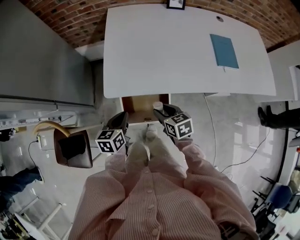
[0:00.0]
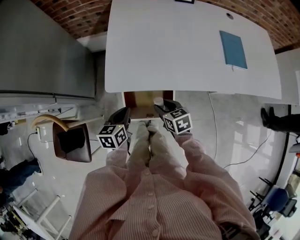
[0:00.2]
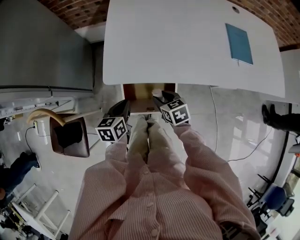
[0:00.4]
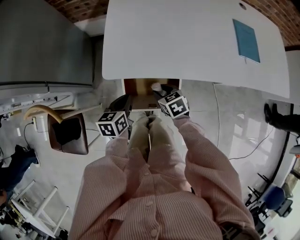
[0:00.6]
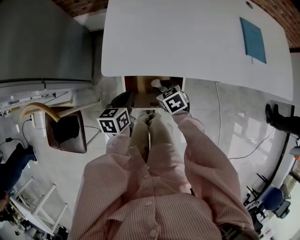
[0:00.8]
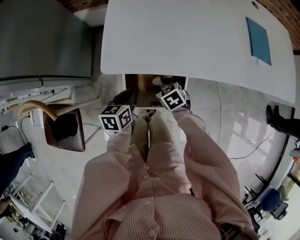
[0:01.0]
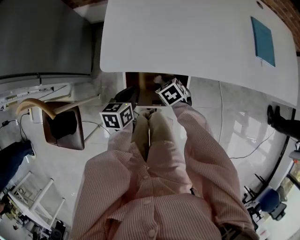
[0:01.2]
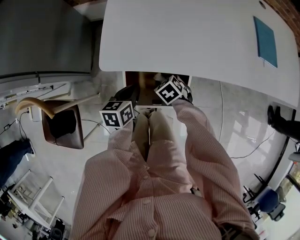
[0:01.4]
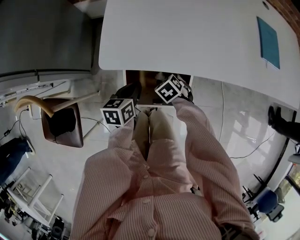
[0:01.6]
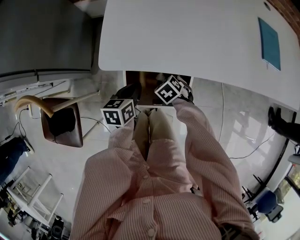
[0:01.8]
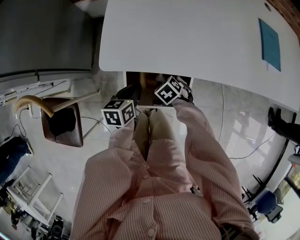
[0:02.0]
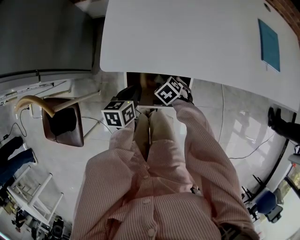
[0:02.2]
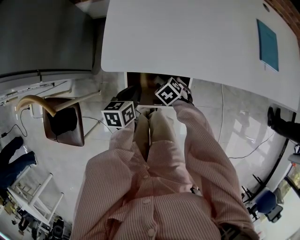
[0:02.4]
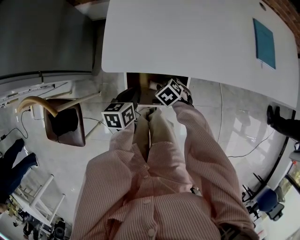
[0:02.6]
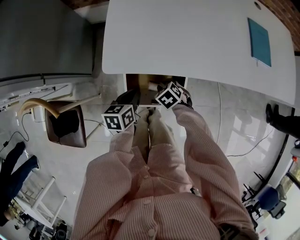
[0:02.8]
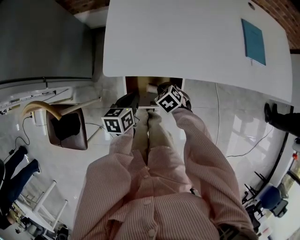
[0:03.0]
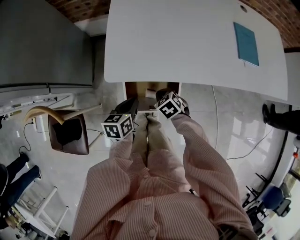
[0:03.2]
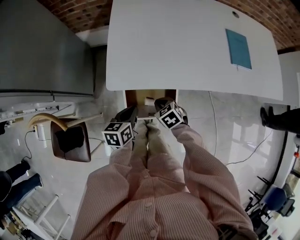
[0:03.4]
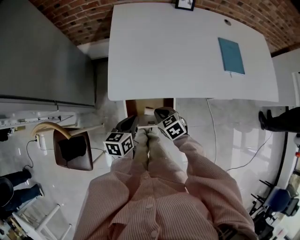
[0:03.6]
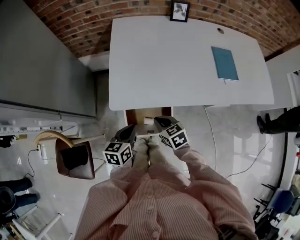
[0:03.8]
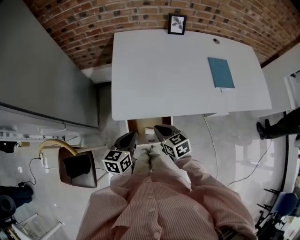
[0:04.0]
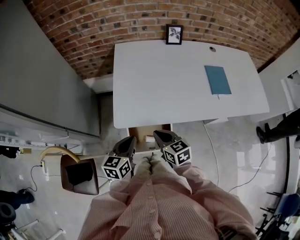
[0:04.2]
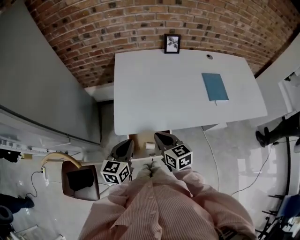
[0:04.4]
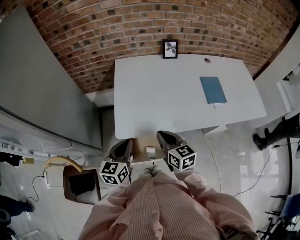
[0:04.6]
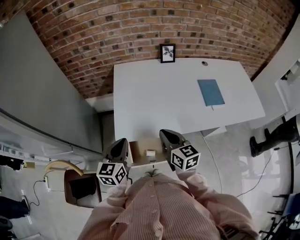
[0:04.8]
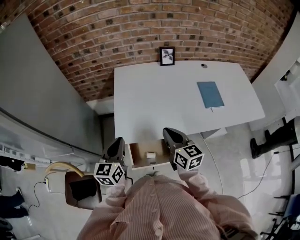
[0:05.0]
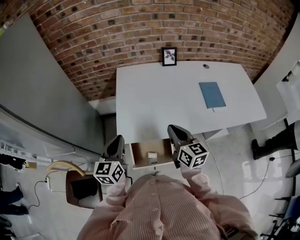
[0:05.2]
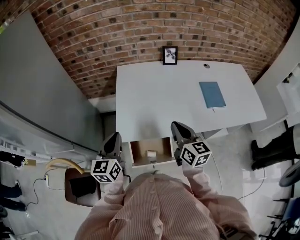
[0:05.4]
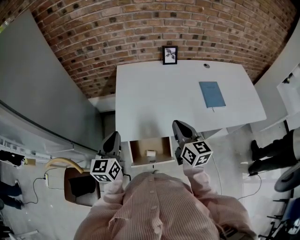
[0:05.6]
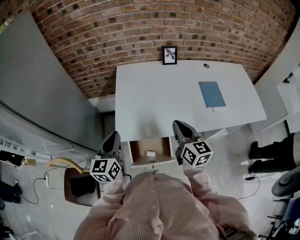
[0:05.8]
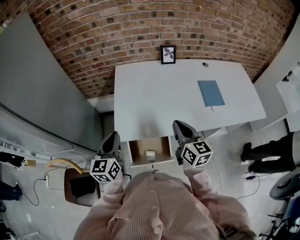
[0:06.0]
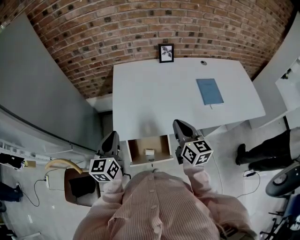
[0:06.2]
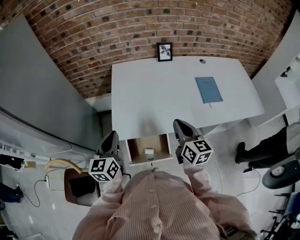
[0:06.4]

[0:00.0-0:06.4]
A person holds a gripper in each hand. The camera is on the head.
0:00.0 to 0:01.6: The right gripper heads downward, covering about 25 cm, and turns by some 40 degrees, while the left gripper is displaced downward by some 15 cm.
0:01.6 to 0:03.2: The grippers both shift upward by roughly 10 cm. The right gripper closes up.
0:03.2 to 0:04.8: The grippers both shift upward by roughly 30 cm. The left gripper swivels about 30 degrees, while the right gripper angles its fingers upward, by roughly 50 degrees.
0:04.8 to 0:06.4: The right gripper travels to the right by about 10 cm.

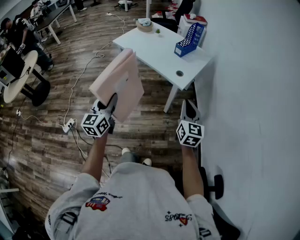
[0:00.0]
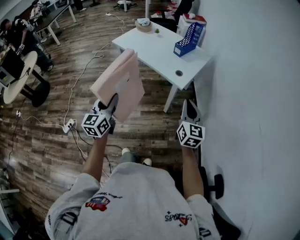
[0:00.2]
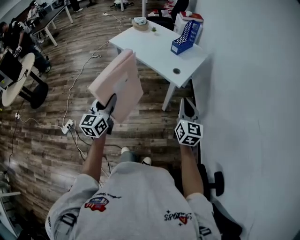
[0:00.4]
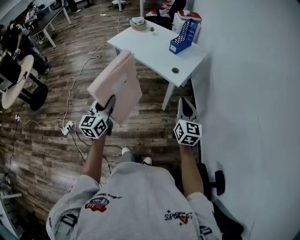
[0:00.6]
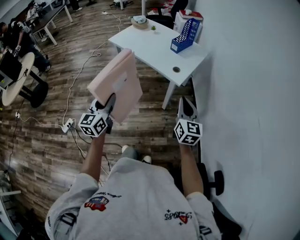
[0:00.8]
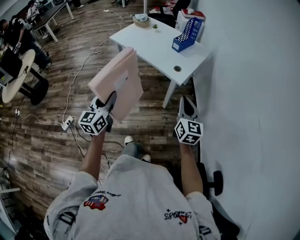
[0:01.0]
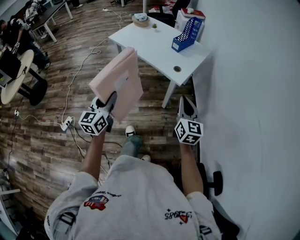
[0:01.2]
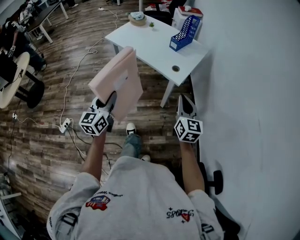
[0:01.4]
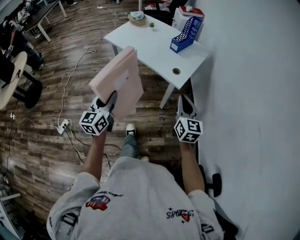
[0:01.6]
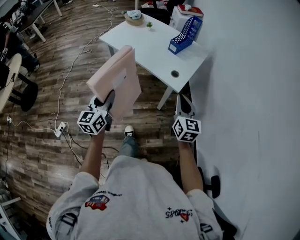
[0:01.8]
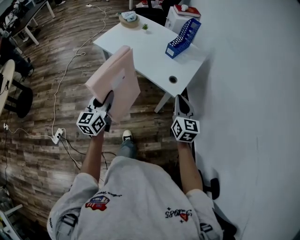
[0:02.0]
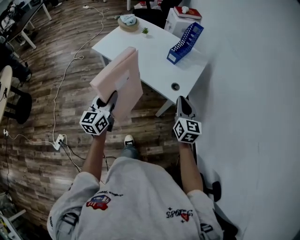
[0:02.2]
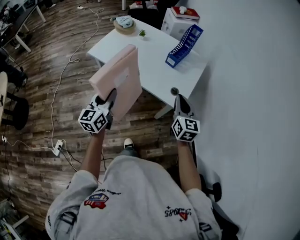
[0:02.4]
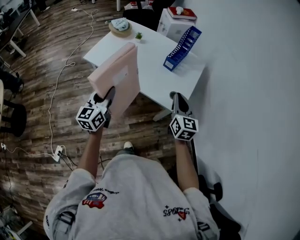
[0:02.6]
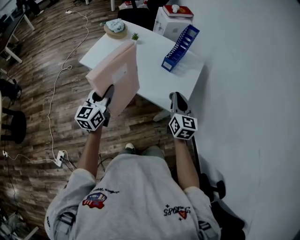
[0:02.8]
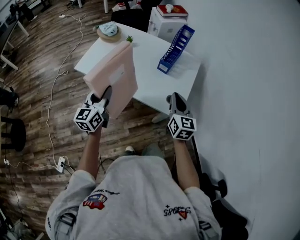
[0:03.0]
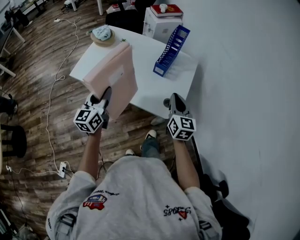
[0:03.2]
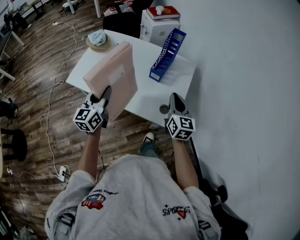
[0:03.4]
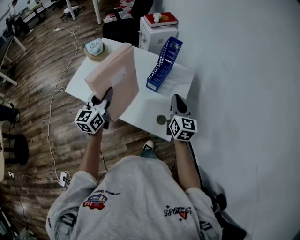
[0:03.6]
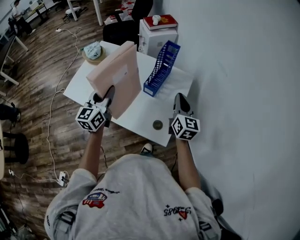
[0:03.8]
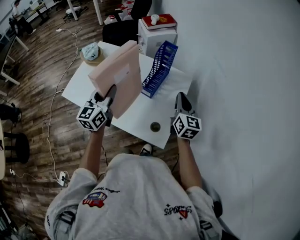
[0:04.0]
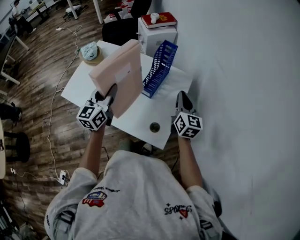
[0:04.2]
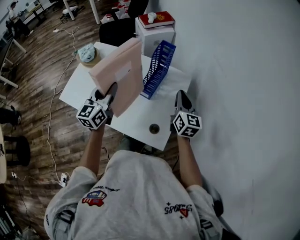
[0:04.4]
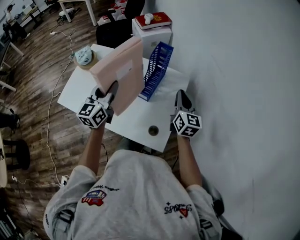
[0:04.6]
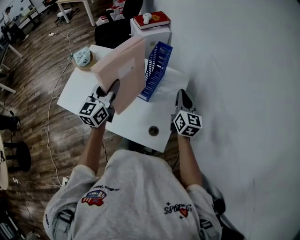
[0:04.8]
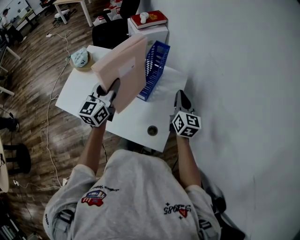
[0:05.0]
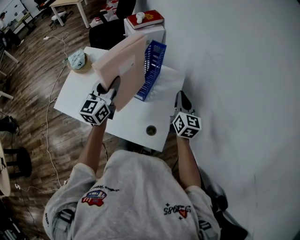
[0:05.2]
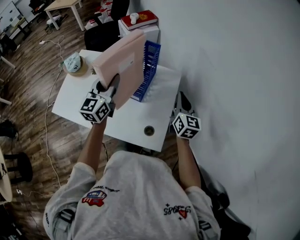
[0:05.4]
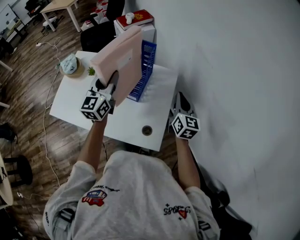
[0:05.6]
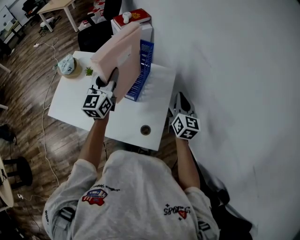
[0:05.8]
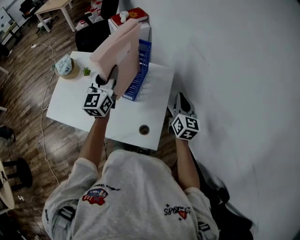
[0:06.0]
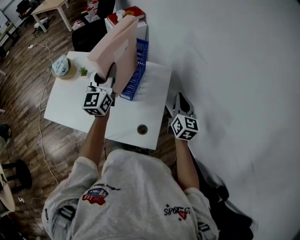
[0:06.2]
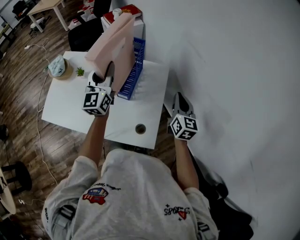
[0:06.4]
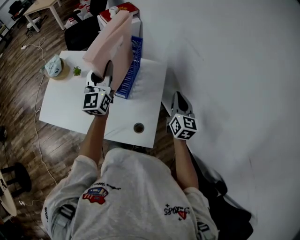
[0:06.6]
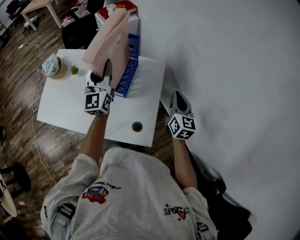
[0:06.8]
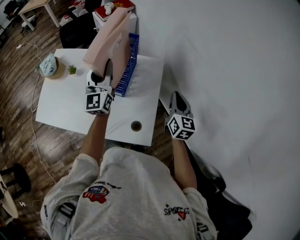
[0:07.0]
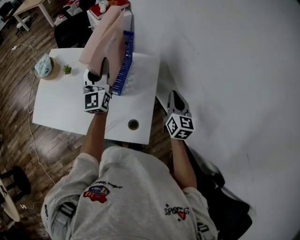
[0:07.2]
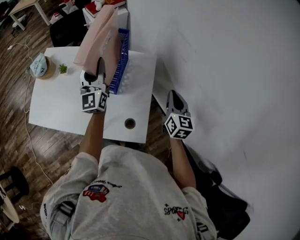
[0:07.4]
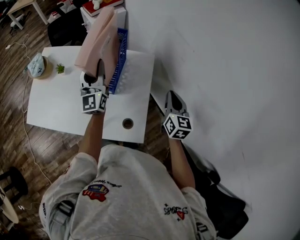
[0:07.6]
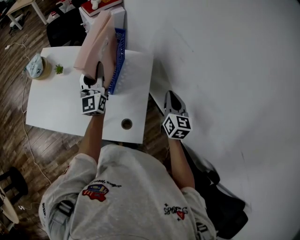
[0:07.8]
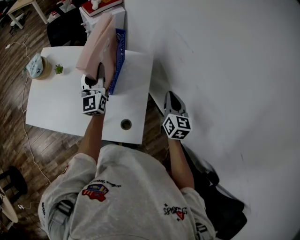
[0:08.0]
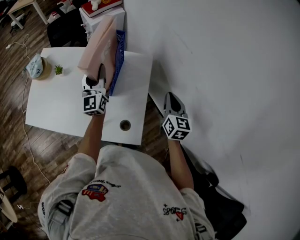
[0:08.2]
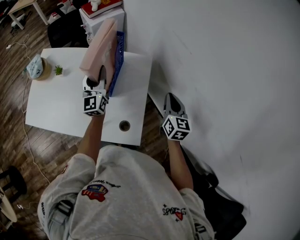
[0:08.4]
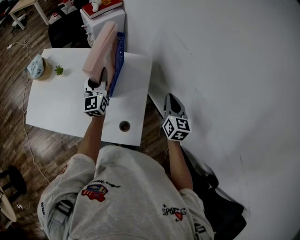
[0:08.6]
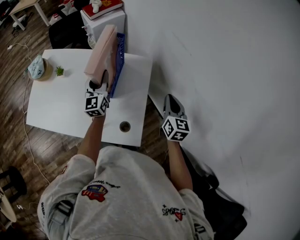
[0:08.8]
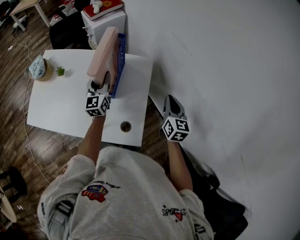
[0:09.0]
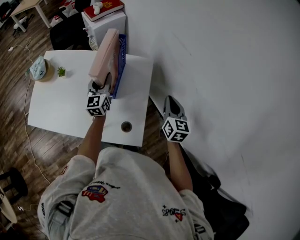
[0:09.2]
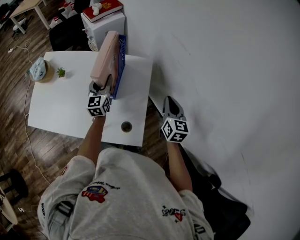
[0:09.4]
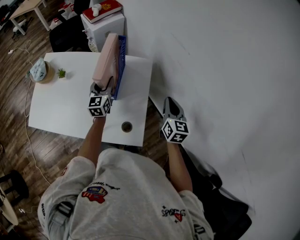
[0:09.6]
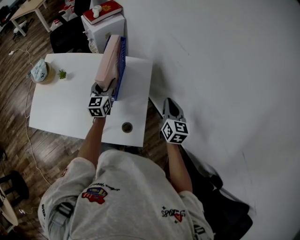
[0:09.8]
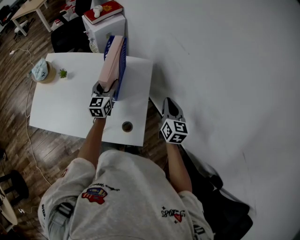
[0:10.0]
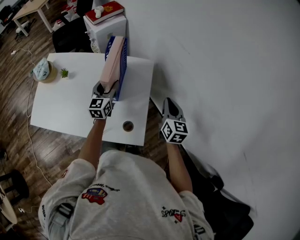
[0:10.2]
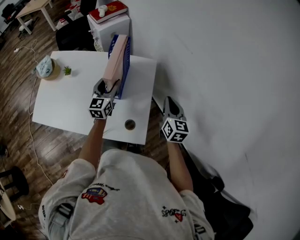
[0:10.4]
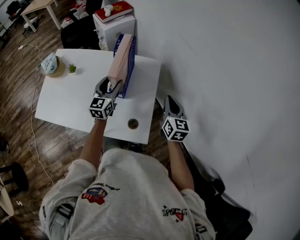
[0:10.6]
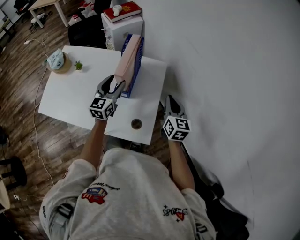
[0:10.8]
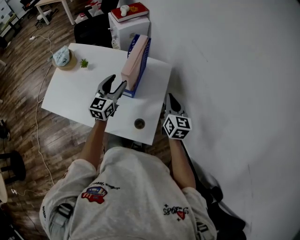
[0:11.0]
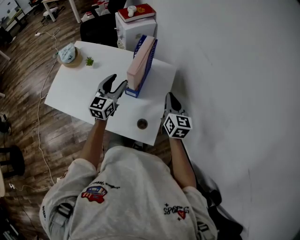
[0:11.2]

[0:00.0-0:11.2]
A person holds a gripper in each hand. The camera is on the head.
0:00.0 to 0:01.6: The grippers both shift forward by approximately 10 cm.
0:01.6 to 0:03.2: Both grippers move forward, approximately 40 cm.
0:03.2 to 0:04.8: The two grippers go about 30 cm forward and to the right.
0:04.8 to 0:06.4: The left gripper travels forward and to the right by roughly 10 cm, while the right gripper travels to the right by about 10 cm.
0:06.4 to 0:08.0: The right gripper shifts by about 5 cm, while the left gripper shifts about 10 cm downward.
0:08.0 to 0:09.6: The left gripper moves downward, roughly 10 cm, and rotates approximately 20 degrees.
0:09.6 to 0:11.2: The left gripper travels backward and upward by roughly 15 cm; the right gripper heads to the left, covering approximately 10 cm.

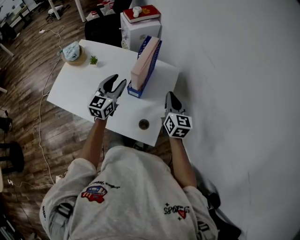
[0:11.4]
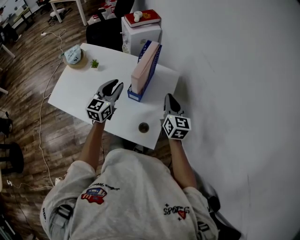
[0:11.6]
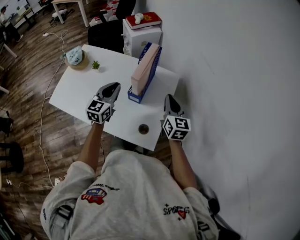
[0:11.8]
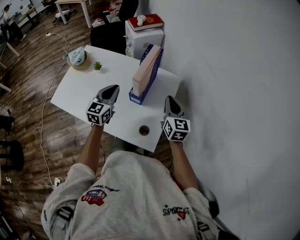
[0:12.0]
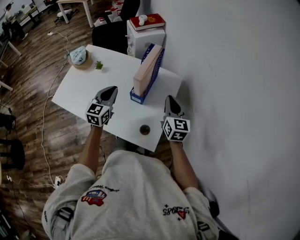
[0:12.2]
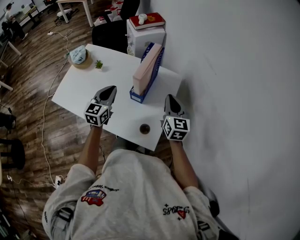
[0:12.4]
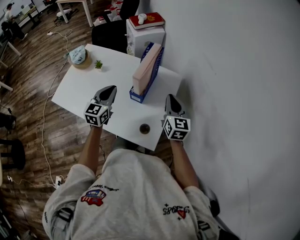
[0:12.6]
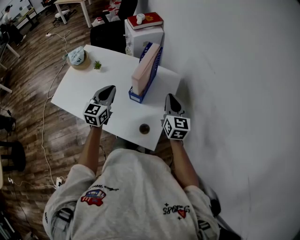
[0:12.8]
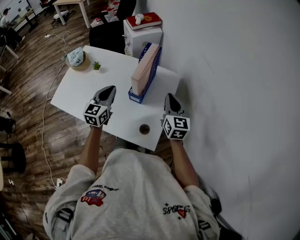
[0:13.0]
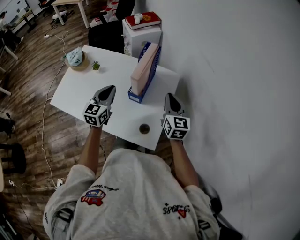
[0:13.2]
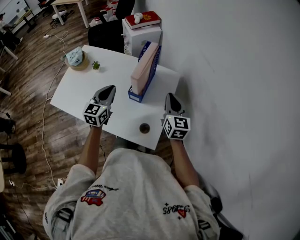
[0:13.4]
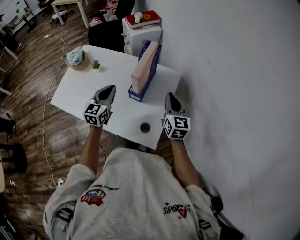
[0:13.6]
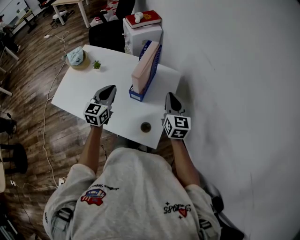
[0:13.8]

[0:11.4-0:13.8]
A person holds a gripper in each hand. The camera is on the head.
0:11.4 to 0:12.6: The left gripper closes.
0:12.6 to 0:13.8: Both grippers stay put.

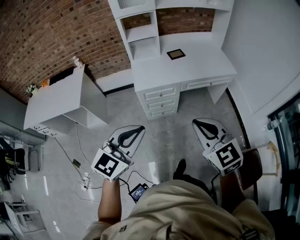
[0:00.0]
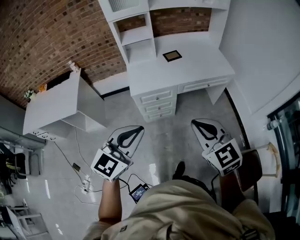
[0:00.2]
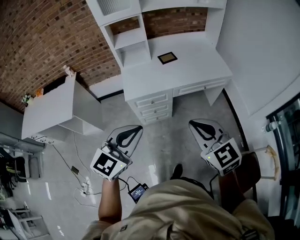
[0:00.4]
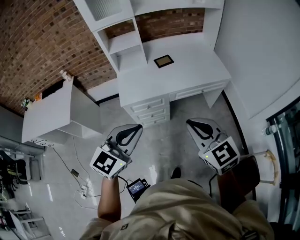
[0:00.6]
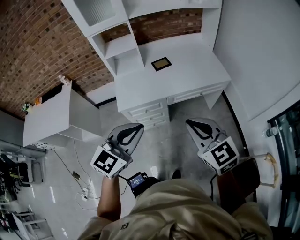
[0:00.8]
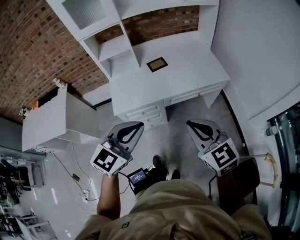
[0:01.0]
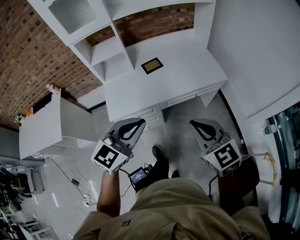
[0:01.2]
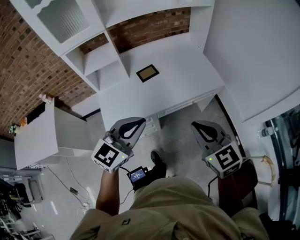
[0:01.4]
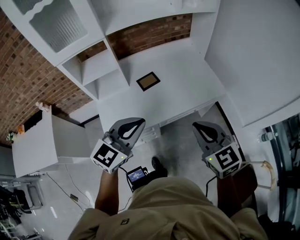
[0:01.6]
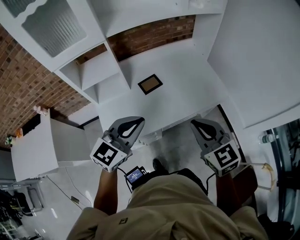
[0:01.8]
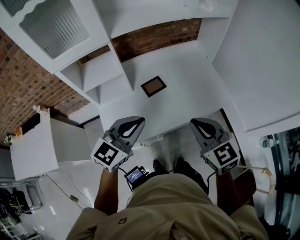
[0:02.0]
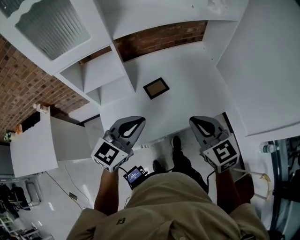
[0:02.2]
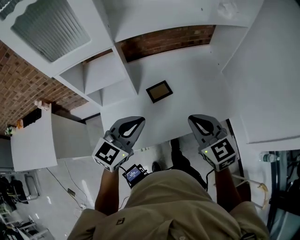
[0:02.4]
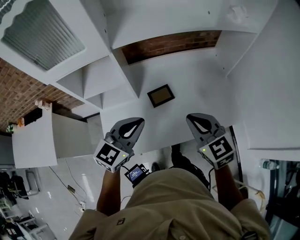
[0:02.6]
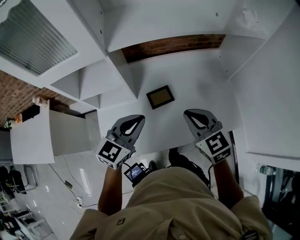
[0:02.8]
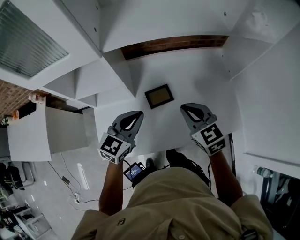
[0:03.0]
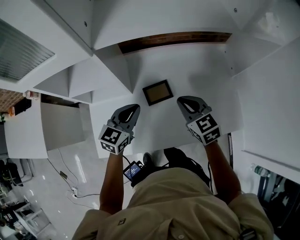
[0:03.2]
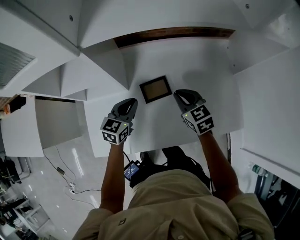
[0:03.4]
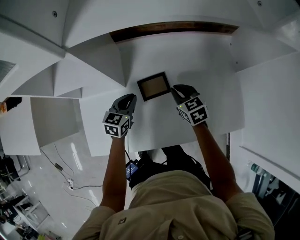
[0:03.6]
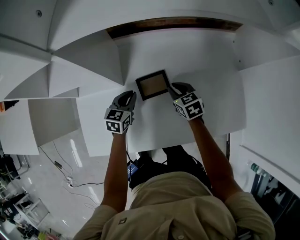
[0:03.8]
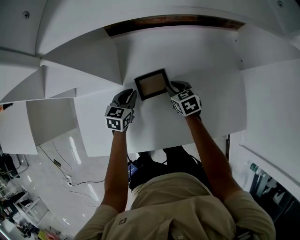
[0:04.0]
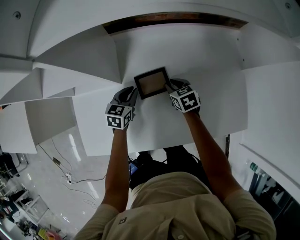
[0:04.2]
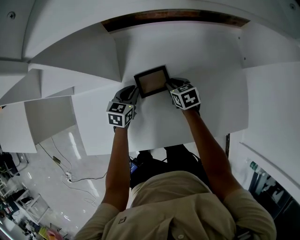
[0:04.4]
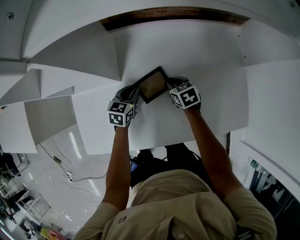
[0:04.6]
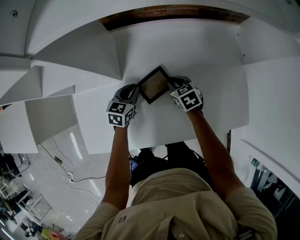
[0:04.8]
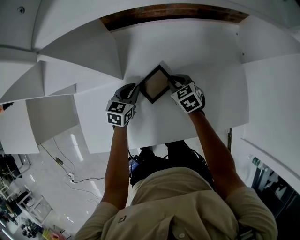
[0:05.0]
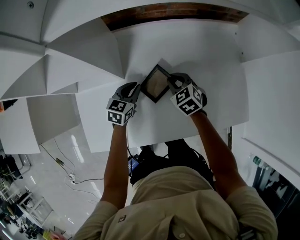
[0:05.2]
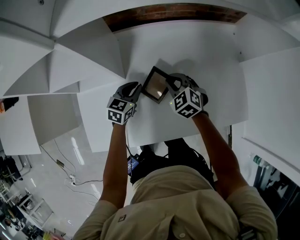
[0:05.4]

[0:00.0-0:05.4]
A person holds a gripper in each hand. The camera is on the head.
0:00.0 to 0:01.4: The two grippers go about 35 cm forward and to the right.
0:01.4 to 0:02.8: Both grippers travel together forward, roughly 35 cm.
0:02.8 to 0:04.0: Both grippers move downward and forward, approximately 40 cm. The left gripper swivels approximately 30 degrees, while the right gripper turns by some 30 degrees.
0:04.0 to 0:05.4: The right gripper is displaced upward by some 5 cm, and turns by some 30 degrees.
